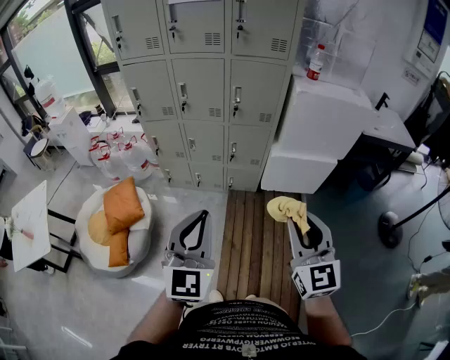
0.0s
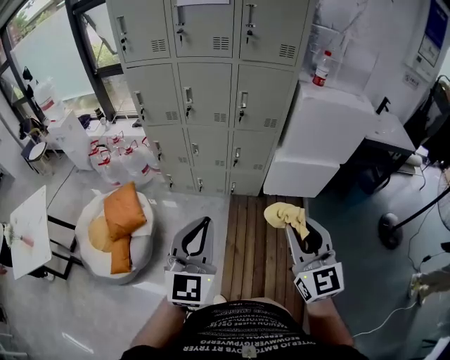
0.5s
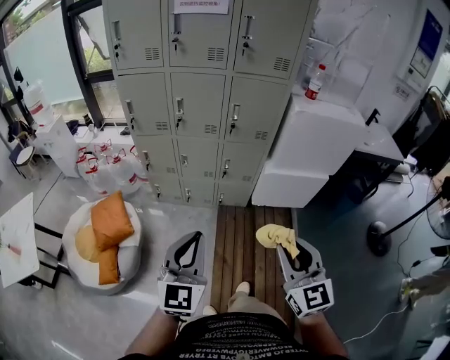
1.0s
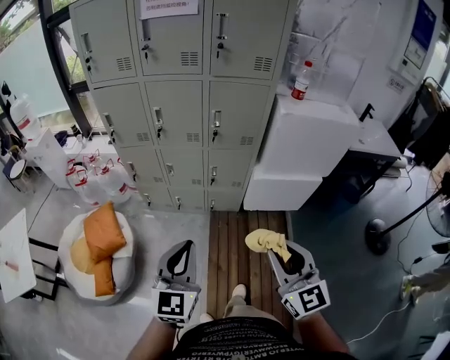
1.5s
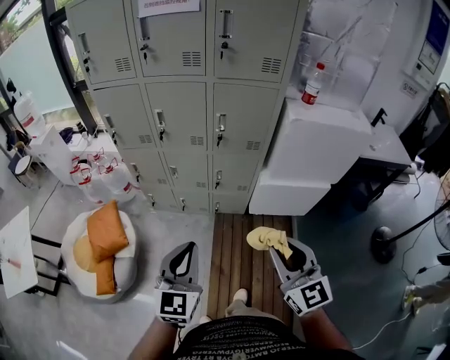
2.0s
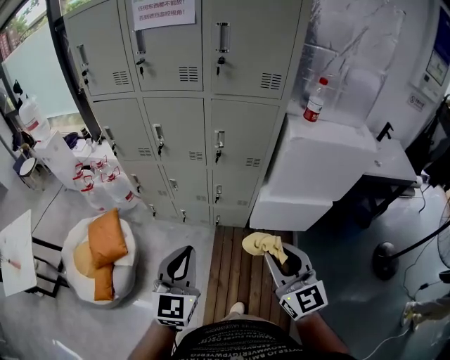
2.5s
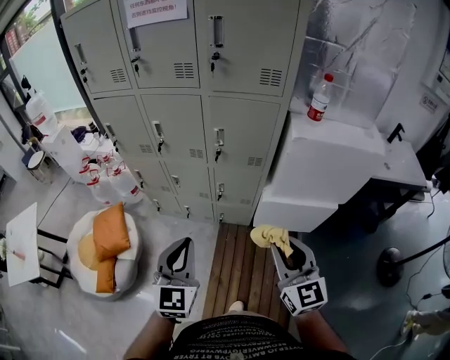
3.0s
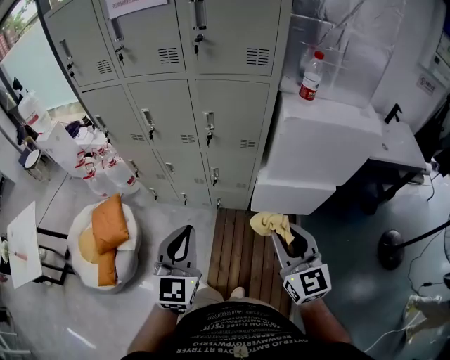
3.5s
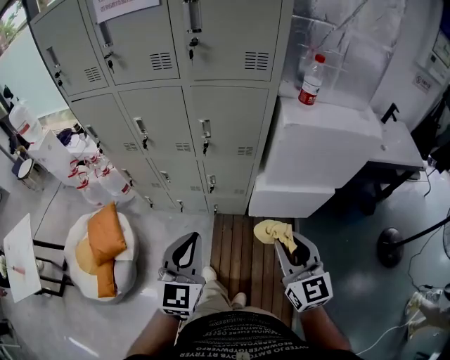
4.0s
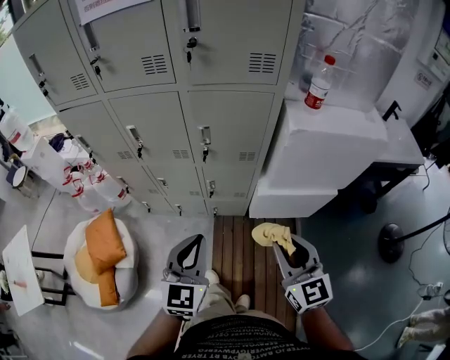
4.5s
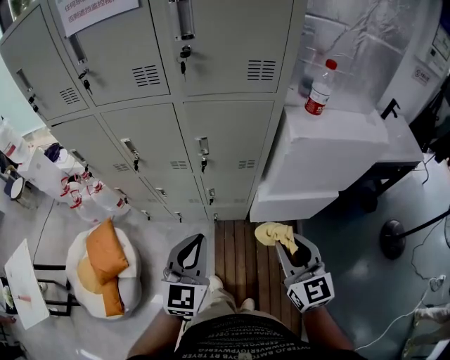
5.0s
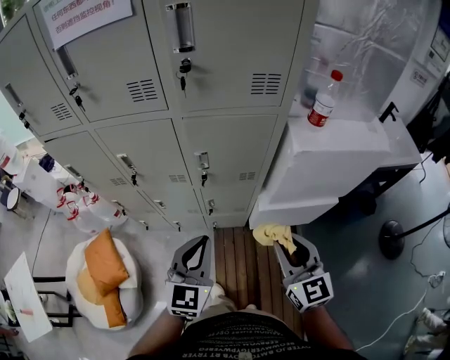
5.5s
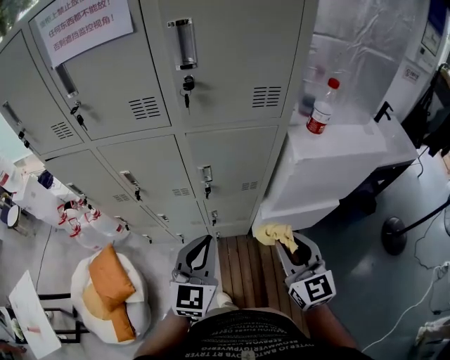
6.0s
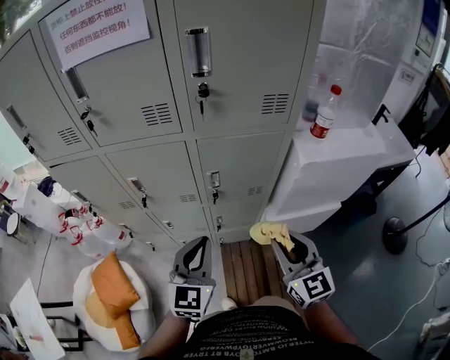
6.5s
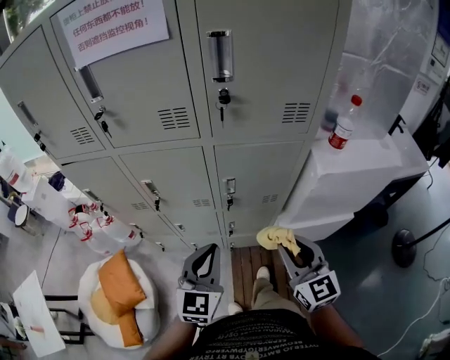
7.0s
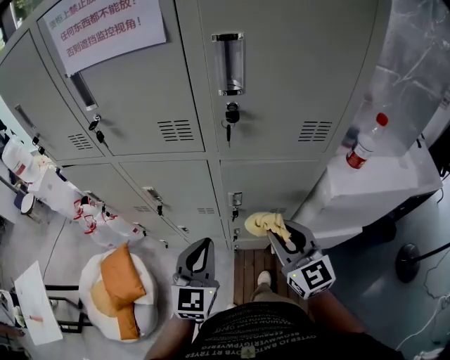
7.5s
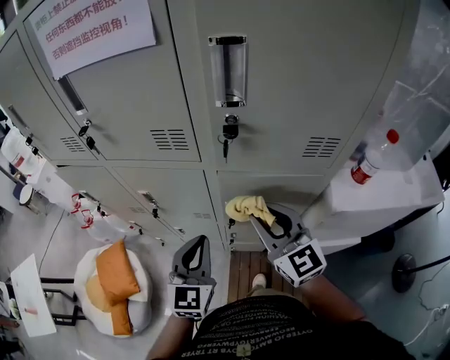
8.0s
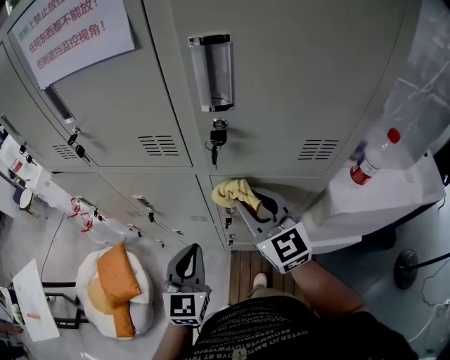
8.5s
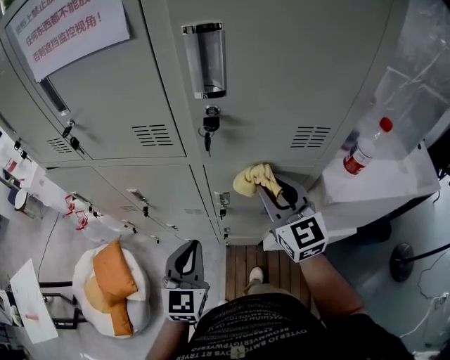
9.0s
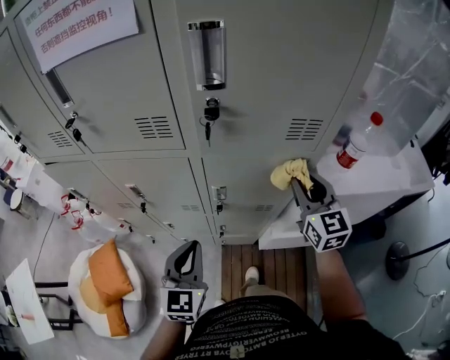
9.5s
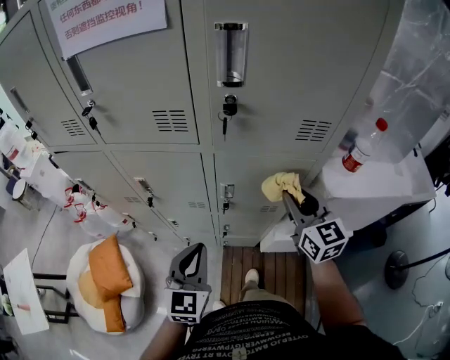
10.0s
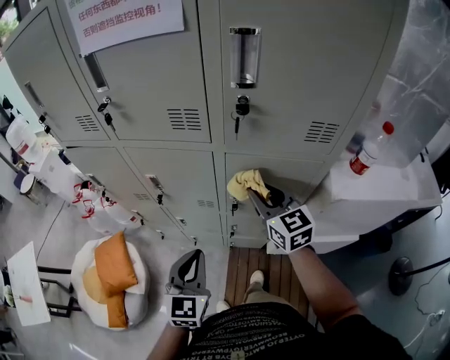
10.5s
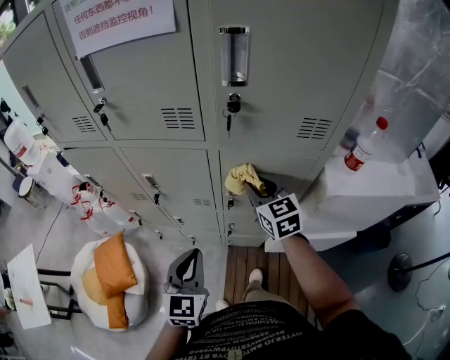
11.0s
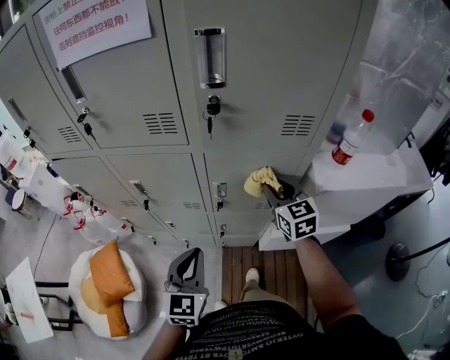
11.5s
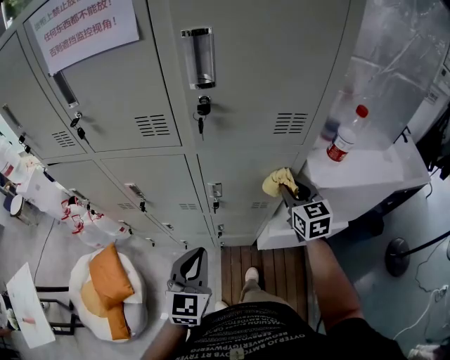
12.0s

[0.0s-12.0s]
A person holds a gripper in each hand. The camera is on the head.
0.0s to 2.0s: The right gripper goes about 15 cm forward; the left gripper is displaced forward and downward by roughly 15 cm.
2.0s to 4.0s: The right gripper travels to the right and forward by about 15 cm. Meanwhile the left gripper goes roughly 15 cm forward and to the right.
4.0s to 6.0s: The grippers both shift forward by roughly 20 cm.
6.0s to 8.0s: The left gripper shifts about 15 cm forward and to the left, while the right gripper travels forward and to the left by approximately 25 cm, and swivels approximately 20 degrees.
8.0s to 10.0s: The left gripper heads backward, covering about 5 cm. Meanwhile the right gripper travels to the right by about 10 cm.
10.0s to 12.0s: The right gripper travels downward by approximately 5 cm, and travels to the left and back again, approximately 10 cm each way.

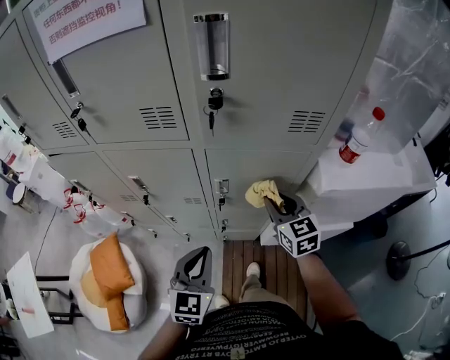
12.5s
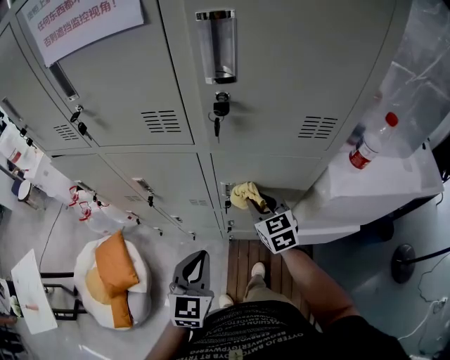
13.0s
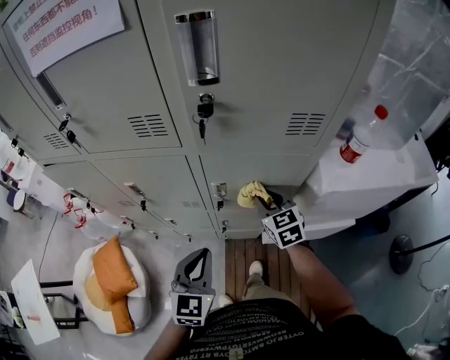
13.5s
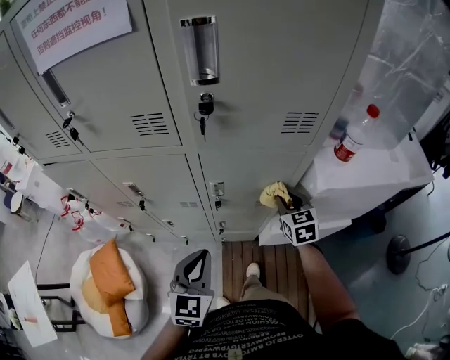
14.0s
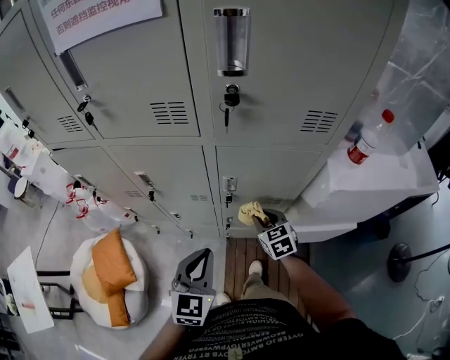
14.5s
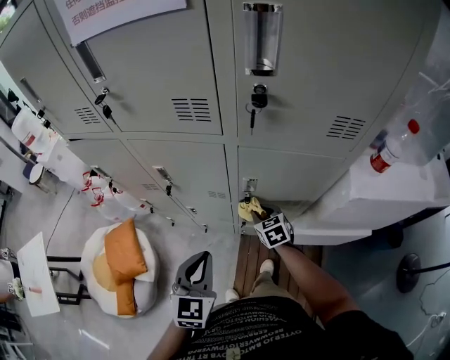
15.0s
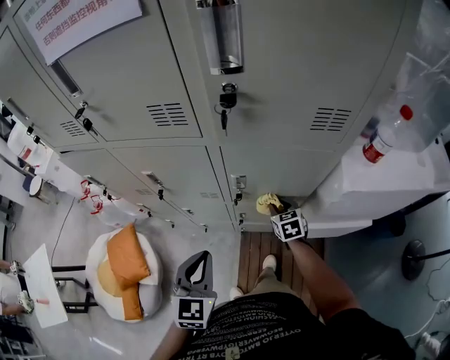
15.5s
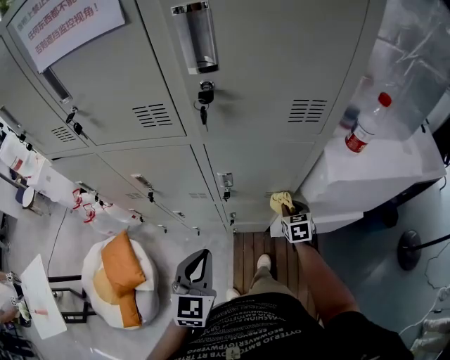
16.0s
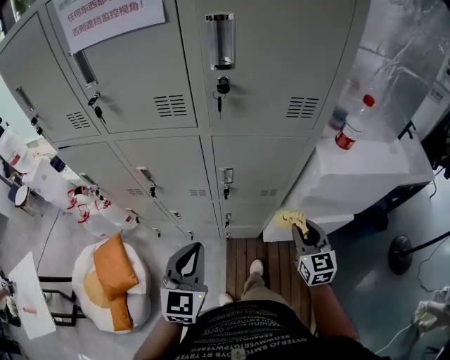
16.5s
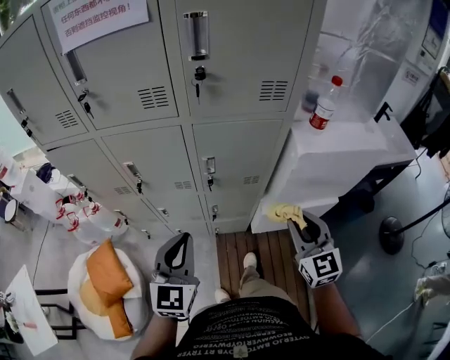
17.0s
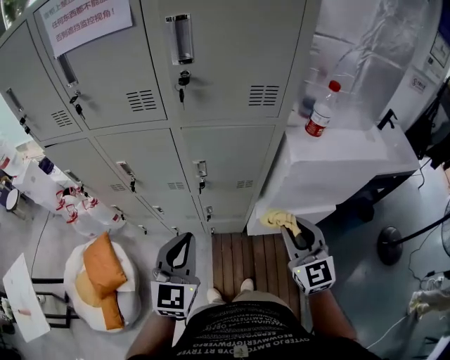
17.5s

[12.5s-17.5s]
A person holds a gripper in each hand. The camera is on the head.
12.5s to 15.0s: The right gripper heads downward and to the left, covering about 20 cm, and rotates some 20 degrees. The left gripper is displaced to the left by some 5 cm.
15.0s to 17.5s: The right gripper is displaced upward, backward and to the right by about 40 cm, and tips its fingers upward by roughly 30 degrees; the left gripper is displaced to the right and upward by some 10 cm.

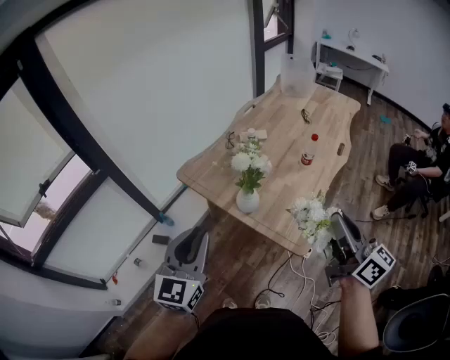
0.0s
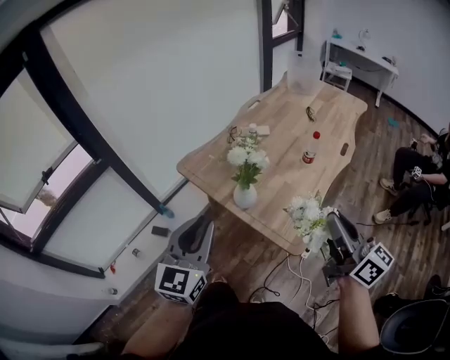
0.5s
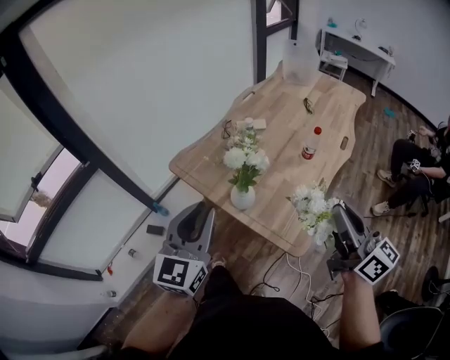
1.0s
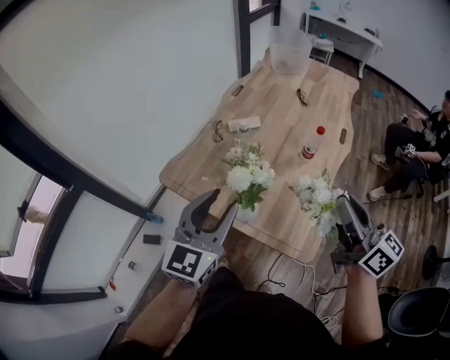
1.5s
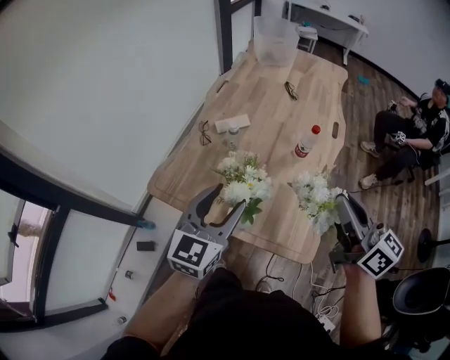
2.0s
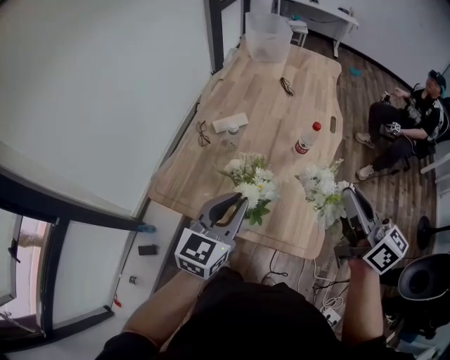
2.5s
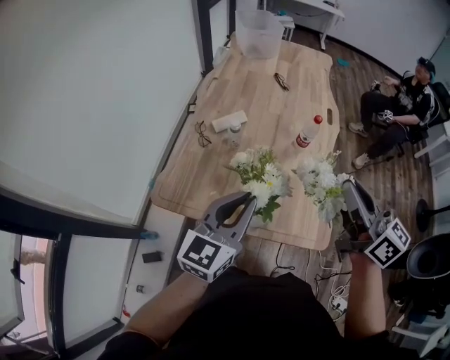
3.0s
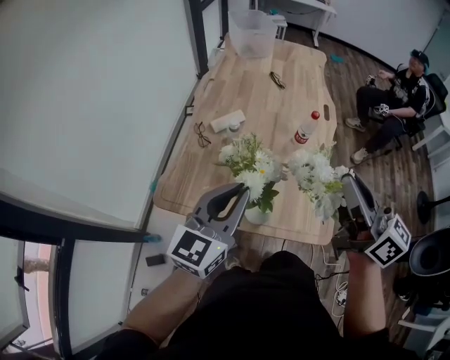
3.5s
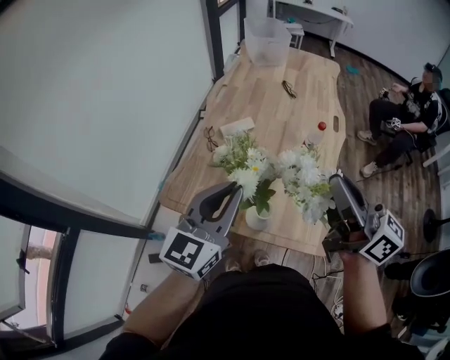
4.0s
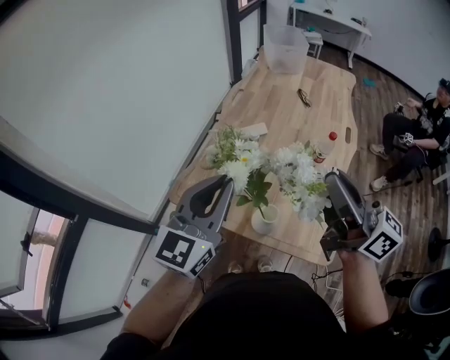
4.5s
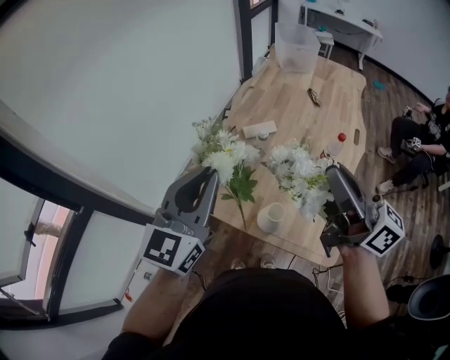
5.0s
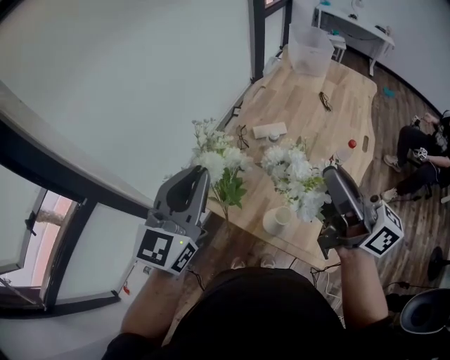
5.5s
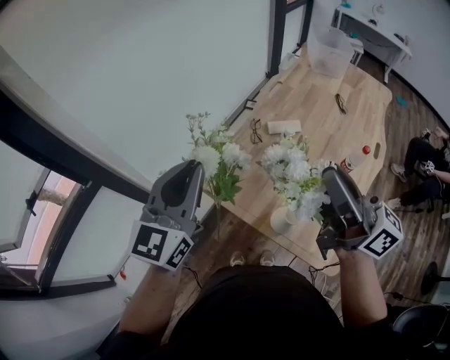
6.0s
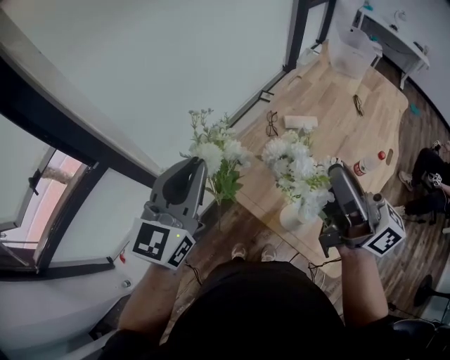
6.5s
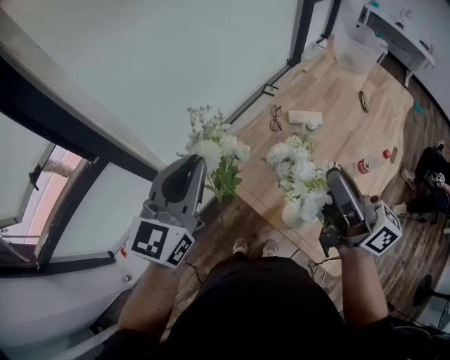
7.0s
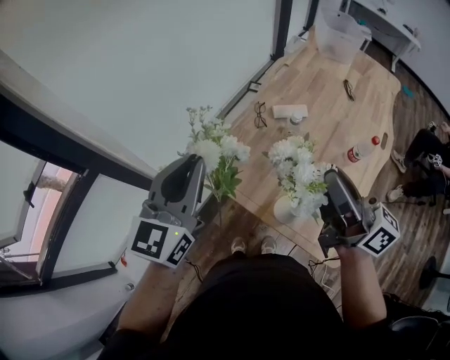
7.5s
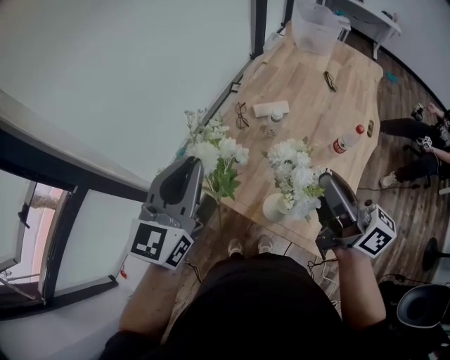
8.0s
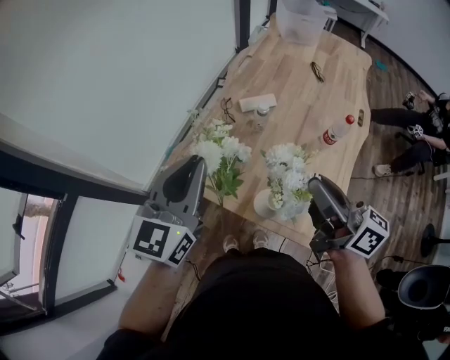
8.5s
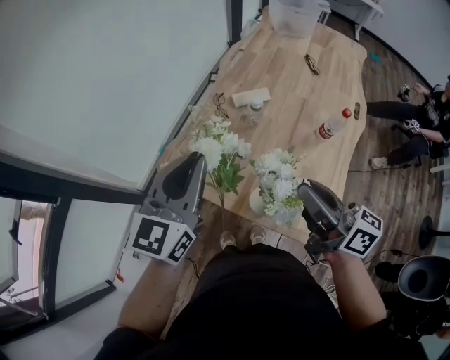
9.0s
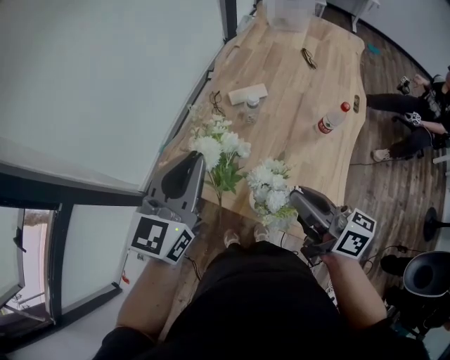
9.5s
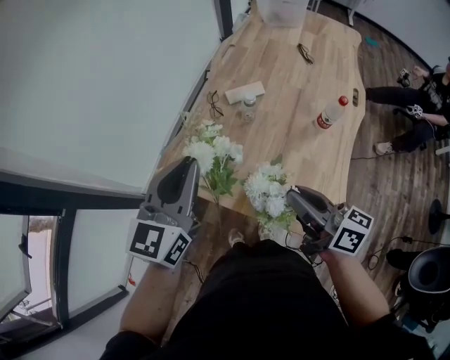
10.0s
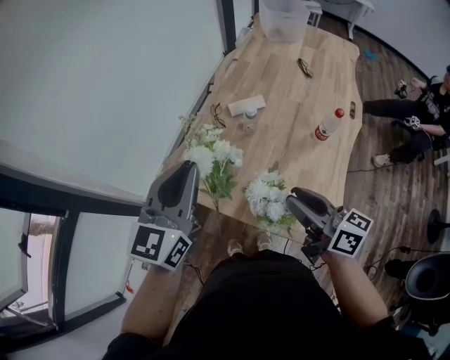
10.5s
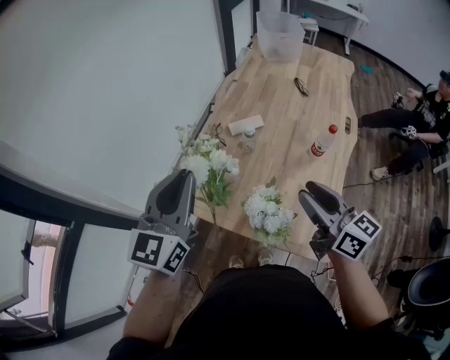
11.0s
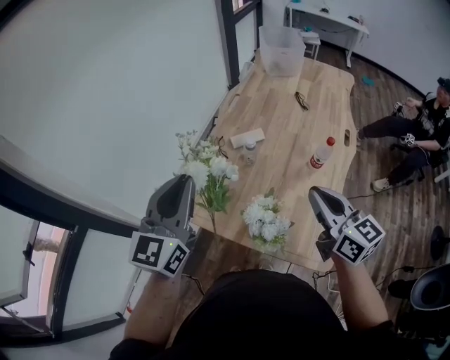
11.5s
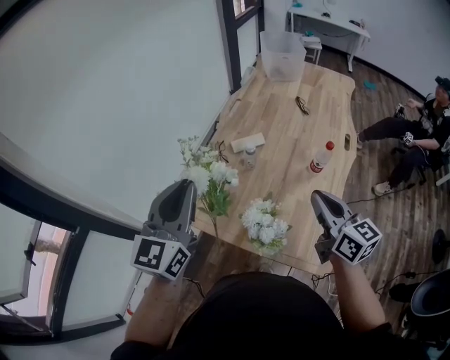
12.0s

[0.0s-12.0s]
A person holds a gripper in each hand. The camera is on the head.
0.0s to 2.0s: Both grippers move forward, approximately 20 cm. The left gripper changes its angle by approximately 30 degrees, and opens.
2.0s to 4.0s: The right gripper shifts approximately 15 cm to the left and upward, while the left gripper shifts roughly 10 cm upward and to the left, and closes.
4.0s to 6.0s: The left gripper heads to the left, covering about 15 cm, and rotates approximately 30 degrees, while the right gripper is displaced to the left and forward by some 10 cm, and changes its angle by approximately 20 degrees.
6.0s to 8.0s: The right gripper shifts about 5 cm downward.
8.0s to 10.0s: The right gripper travels downward by roughly 15 cm, while the left gripper travels to the right and downward by roughly 10 cm.
10.0s to 12.0s: The left gripper shifts some 5 cm upward; the right gripper moves to the right and upward, roughly 10 cm, and swivels roughly 30 degrees.
